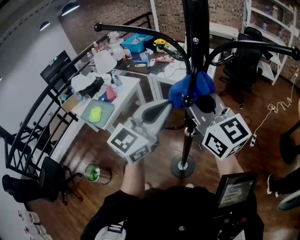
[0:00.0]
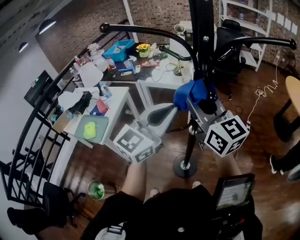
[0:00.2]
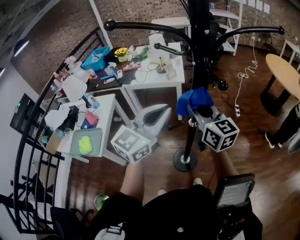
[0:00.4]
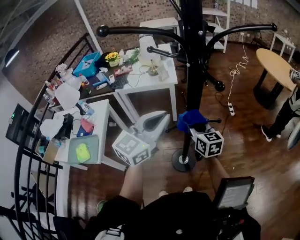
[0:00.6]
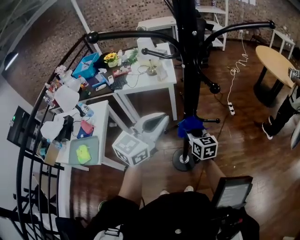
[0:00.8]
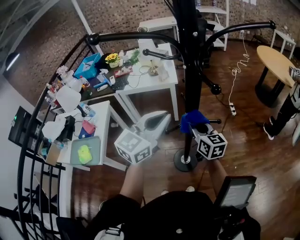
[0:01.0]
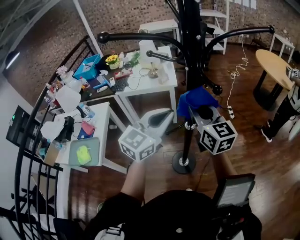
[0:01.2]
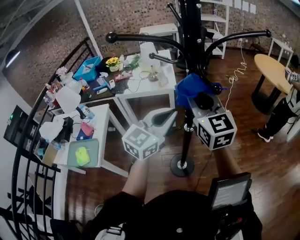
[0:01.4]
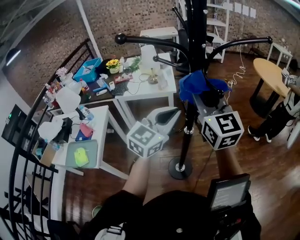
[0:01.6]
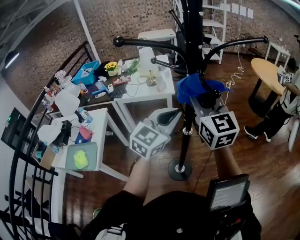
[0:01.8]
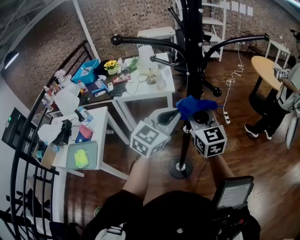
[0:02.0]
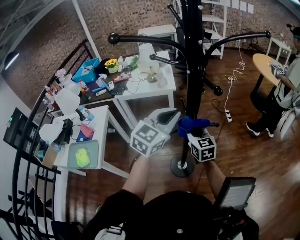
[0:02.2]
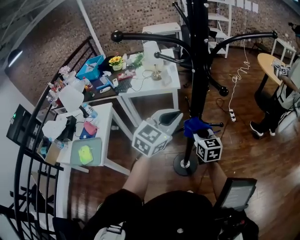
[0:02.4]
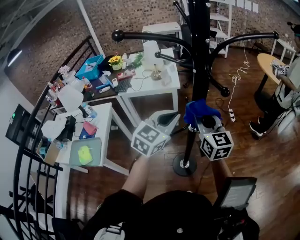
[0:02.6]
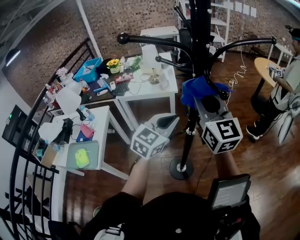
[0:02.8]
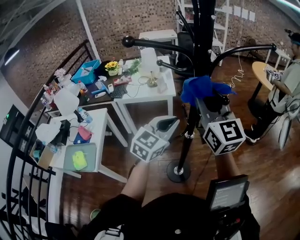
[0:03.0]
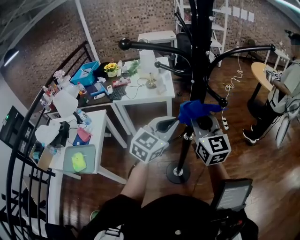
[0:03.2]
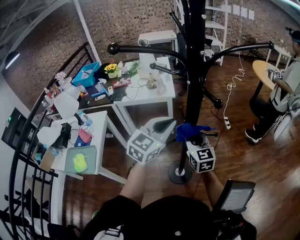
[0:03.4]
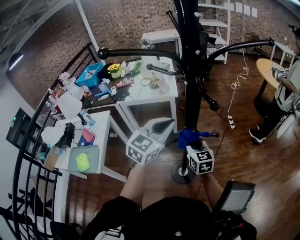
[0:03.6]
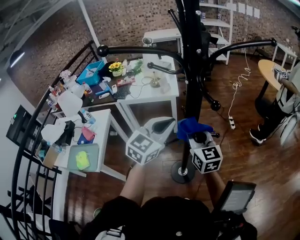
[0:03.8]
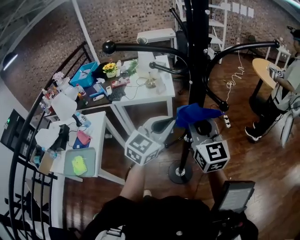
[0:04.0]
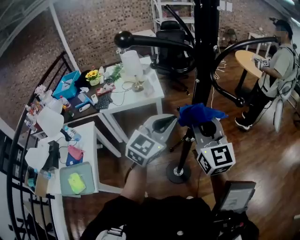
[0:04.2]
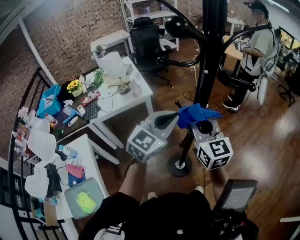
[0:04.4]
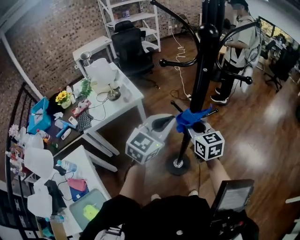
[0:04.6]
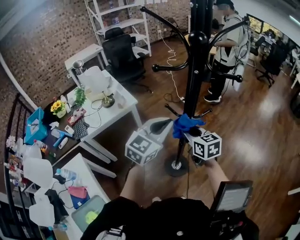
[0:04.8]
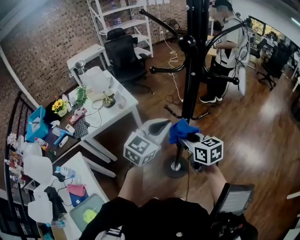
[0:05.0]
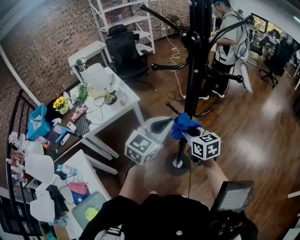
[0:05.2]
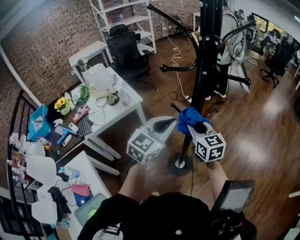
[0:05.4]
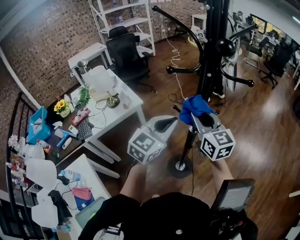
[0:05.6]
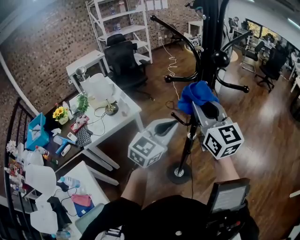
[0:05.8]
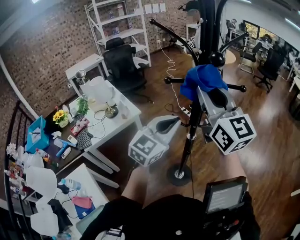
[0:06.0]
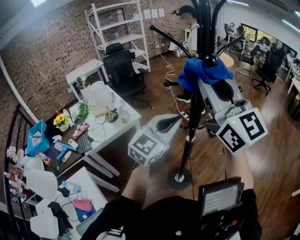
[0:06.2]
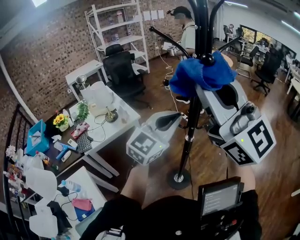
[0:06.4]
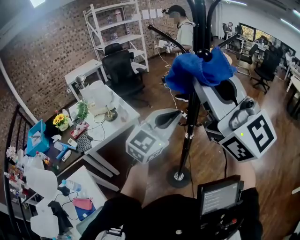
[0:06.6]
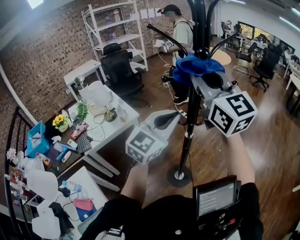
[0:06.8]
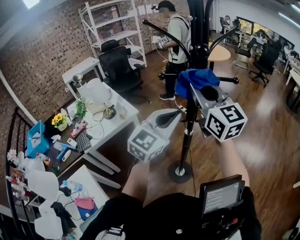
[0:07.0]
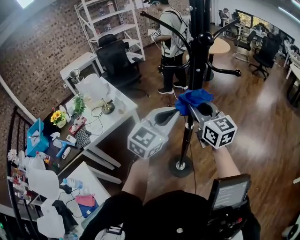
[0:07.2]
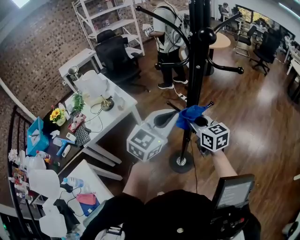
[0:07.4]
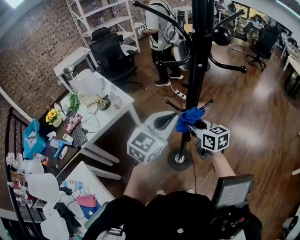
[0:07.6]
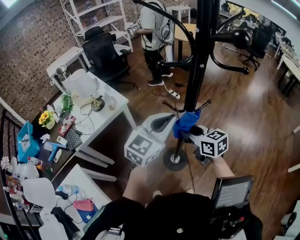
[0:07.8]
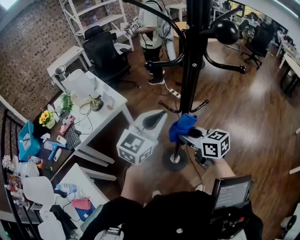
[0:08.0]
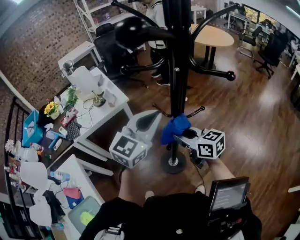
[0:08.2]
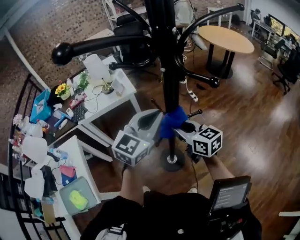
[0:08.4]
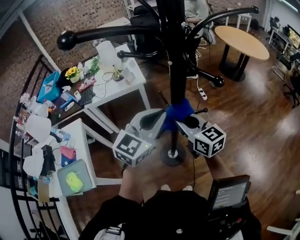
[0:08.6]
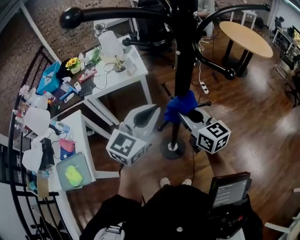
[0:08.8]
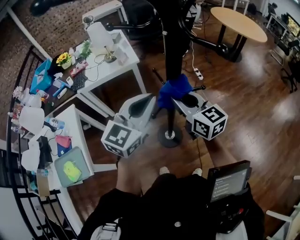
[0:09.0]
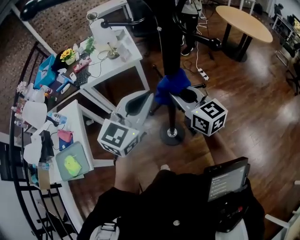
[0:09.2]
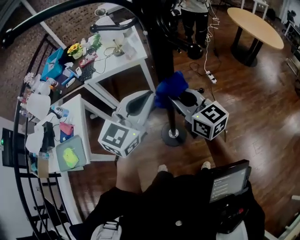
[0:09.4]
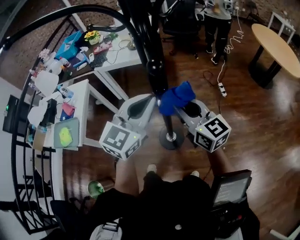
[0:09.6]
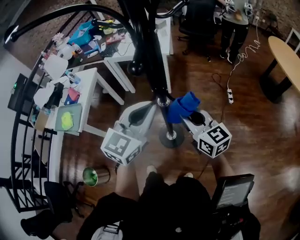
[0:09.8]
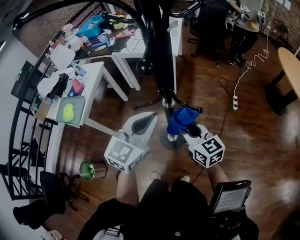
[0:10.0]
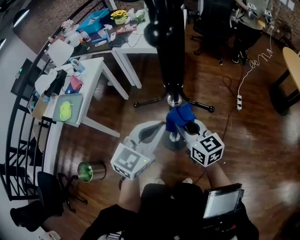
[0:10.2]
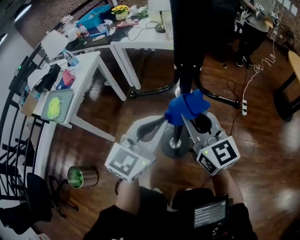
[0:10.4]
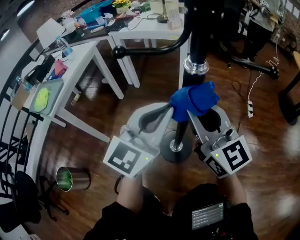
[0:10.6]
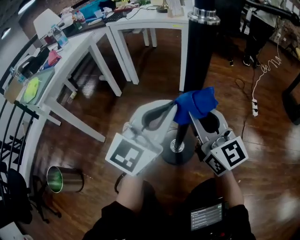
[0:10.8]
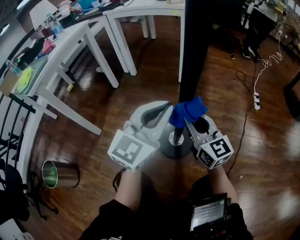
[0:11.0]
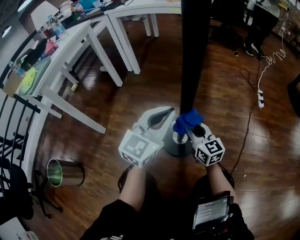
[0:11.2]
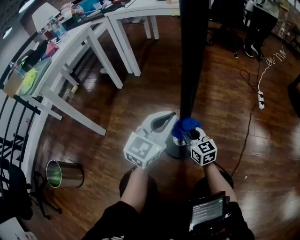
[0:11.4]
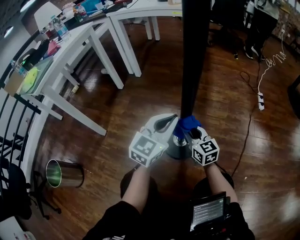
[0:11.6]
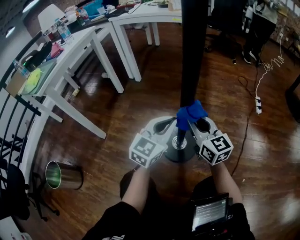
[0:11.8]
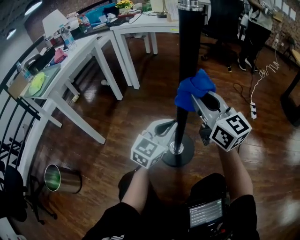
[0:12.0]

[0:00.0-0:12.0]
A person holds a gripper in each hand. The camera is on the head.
0:00.0 to 0:01.6: The left gripper changes its angle by roughly 30 degrees; the right gripper travels downward and back again, about 30 cm each way, and turns by roughly 50 degrees.
0:01.6 to 0:03.0: The right gripper reaches about 30 cm downward, then returns; the left gripper is displaced downward by approximately 5 cm.
0:03.0 to 0:04.4: The left gripper changes place by about 5 cm, and changes its angle by roughly 30 degrees. The right gripper swings up and down, approximately 30 cm each way, with 2 reversals, and changes its angle by about 30 degrees.
0:04.4 to 0:06.0: The left gripper travels upward by approximately 5 cm, while the right gripper heads upward, covering about 20 cm, and changes its angle by approximately 20 degrees.
0:06.0 to 0:07.6: The right gripper goes some 30 cm downward, and angles its fingers downward, by roughly 30 degrees.
0:07.6 to 0:09.0: The left gripper ends up about 5 cm from where it was, and swivels roughly 30 degrees. The right gripper is displaced upward by roughly 5 cm, and swivels some 30 degrees.
0:09.0 to 0:10.4: Both grippers travel together downward, some 15 cm. The right gripper rotates roughly 30 degrees, while the left gripper turns by roughly 30 degrees.
0:10.4 to 0:12.0: The left gripper travels downward by roughly 35 cm. Meanwhile the right gripper shifts roughly 25 cm downward.

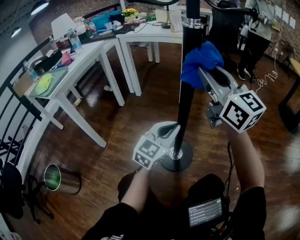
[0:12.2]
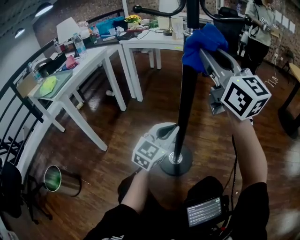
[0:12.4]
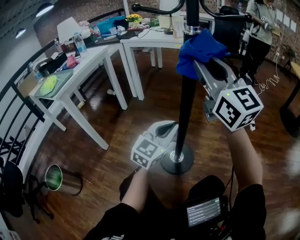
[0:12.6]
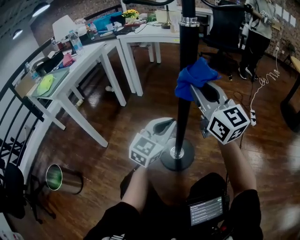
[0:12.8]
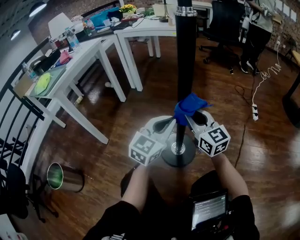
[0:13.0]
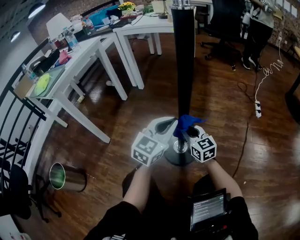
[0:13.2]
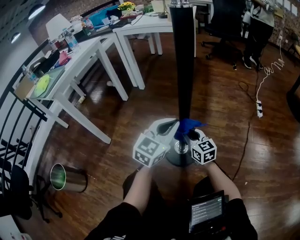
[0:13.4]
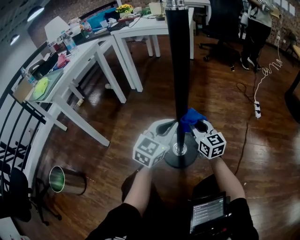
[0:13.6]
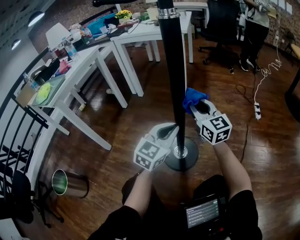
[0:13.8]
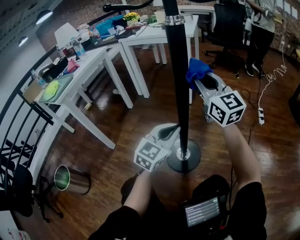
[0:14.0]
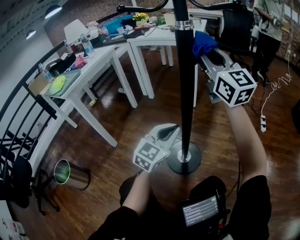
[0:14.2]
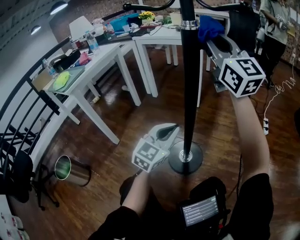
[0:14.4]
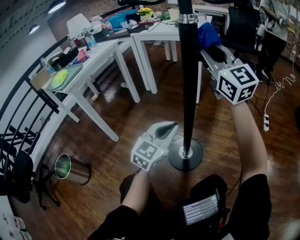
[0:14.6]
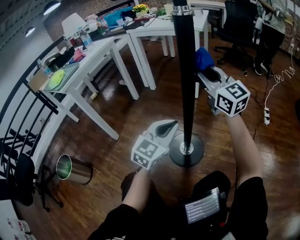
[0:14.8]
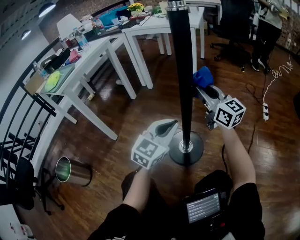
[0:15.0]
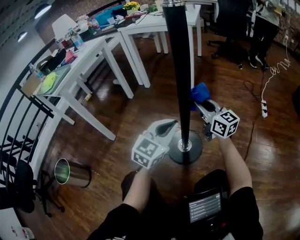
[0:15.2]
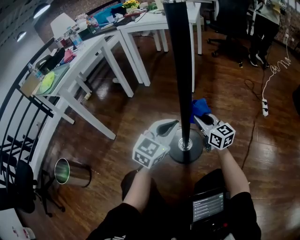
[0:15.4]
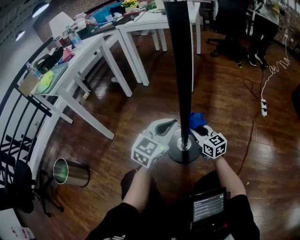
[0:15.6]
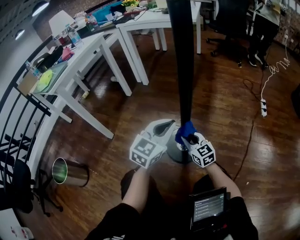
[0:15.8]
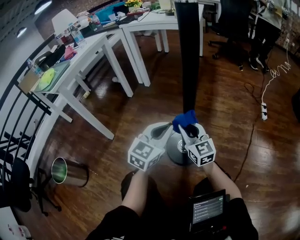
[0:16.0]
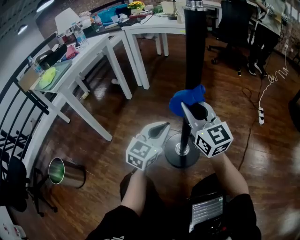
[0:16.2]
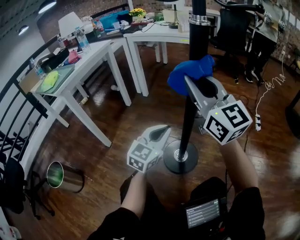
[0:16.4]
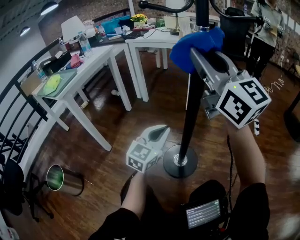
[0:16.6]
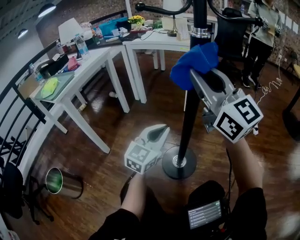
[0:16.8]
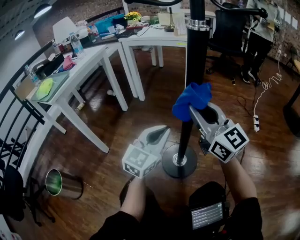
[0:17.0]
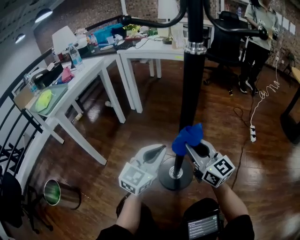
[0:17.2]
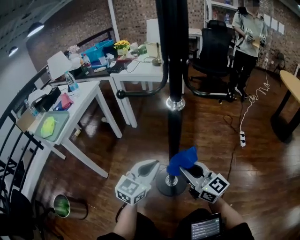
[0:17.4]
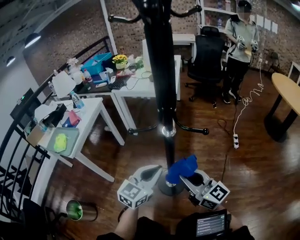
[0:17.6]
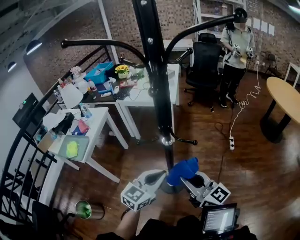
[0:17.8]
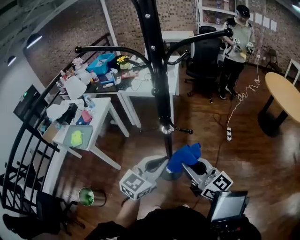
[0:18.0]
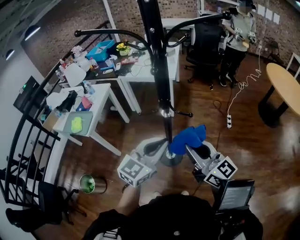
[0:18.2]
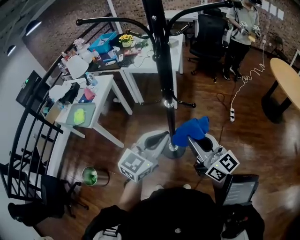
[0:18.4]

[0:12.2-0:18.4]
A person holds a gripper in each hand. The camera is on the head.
0:12.2 to 0:13.8: The right gripper swings up and down, approximately 50 cm each way, with 2 reversals.
0:13.8 to 0:15.4: The right gripper travels upward and back again, about 30 cm each way.
0:15.4 to 0:16.8: The right gripper swings up and down, about 50 cm each way, with 2 reversals, and changes its angle by roughly 30 degrees. The left gripper is displaced upward and to the left by about 10 cm.
0:16.8 to 0:18.4: The right gripper shifts some 30 cm upward and backward, and changes its angle by about 20 degrees, while the left gripper shifts some 50 cm upward.

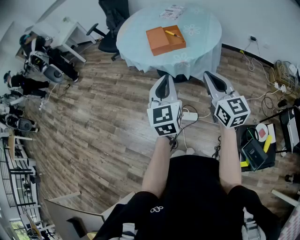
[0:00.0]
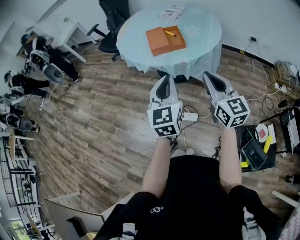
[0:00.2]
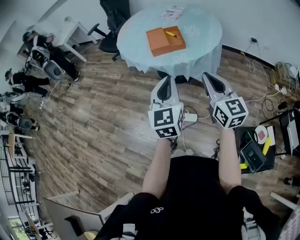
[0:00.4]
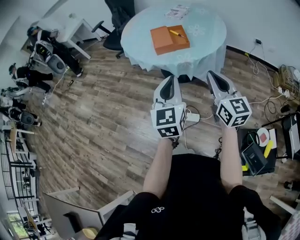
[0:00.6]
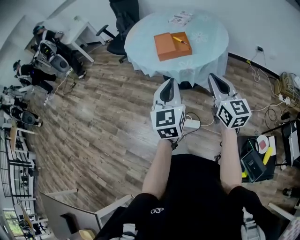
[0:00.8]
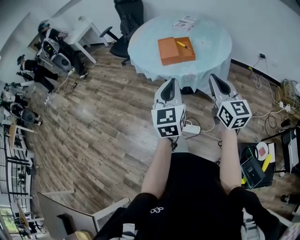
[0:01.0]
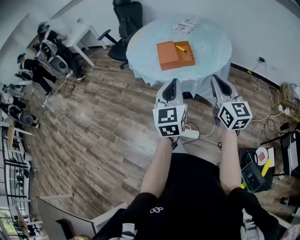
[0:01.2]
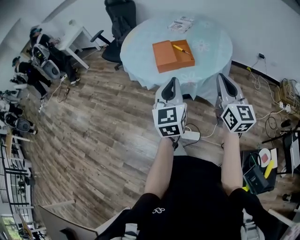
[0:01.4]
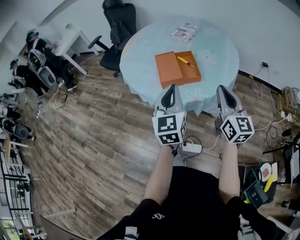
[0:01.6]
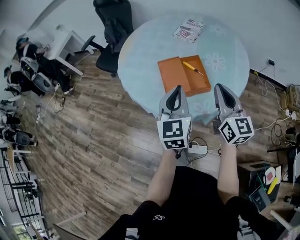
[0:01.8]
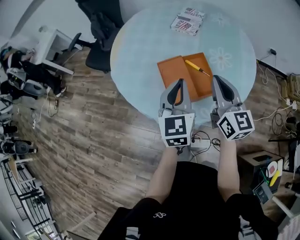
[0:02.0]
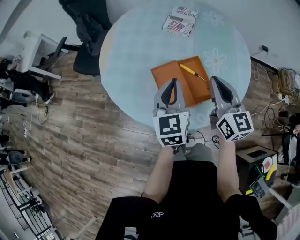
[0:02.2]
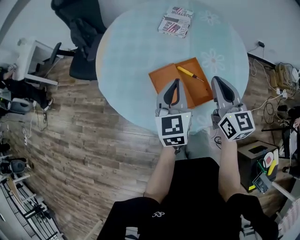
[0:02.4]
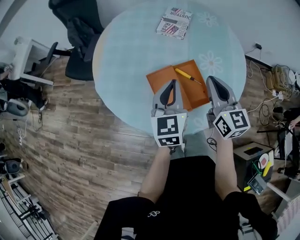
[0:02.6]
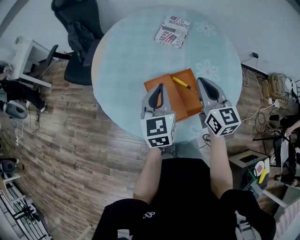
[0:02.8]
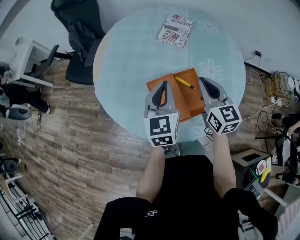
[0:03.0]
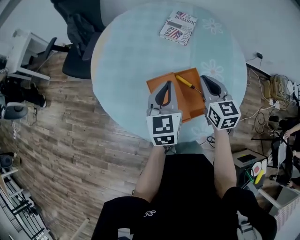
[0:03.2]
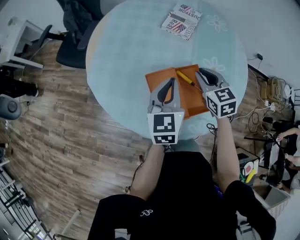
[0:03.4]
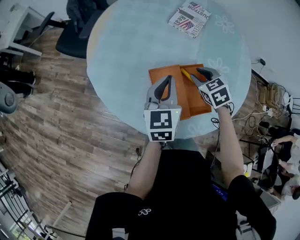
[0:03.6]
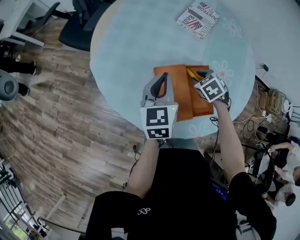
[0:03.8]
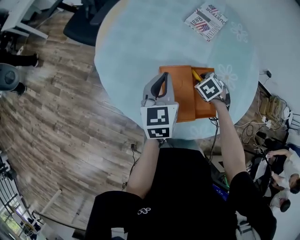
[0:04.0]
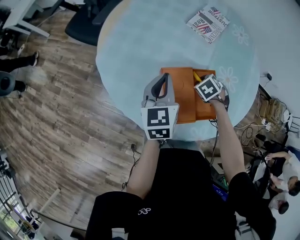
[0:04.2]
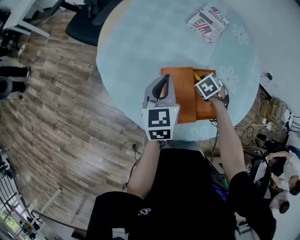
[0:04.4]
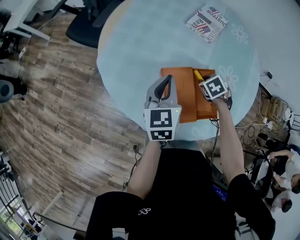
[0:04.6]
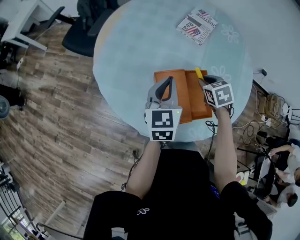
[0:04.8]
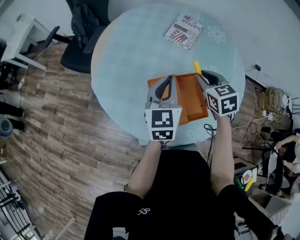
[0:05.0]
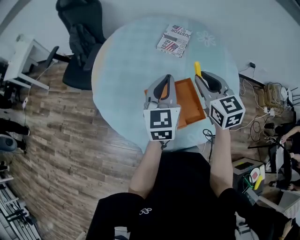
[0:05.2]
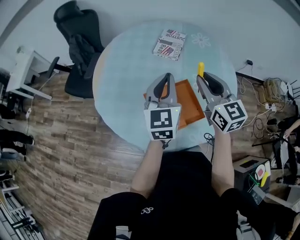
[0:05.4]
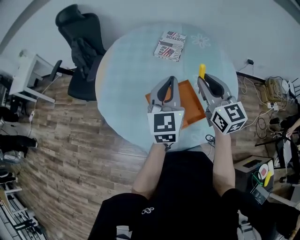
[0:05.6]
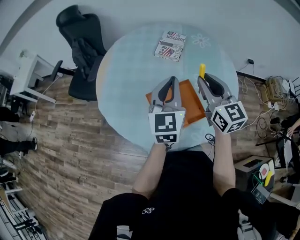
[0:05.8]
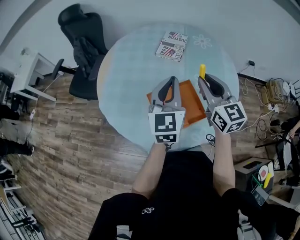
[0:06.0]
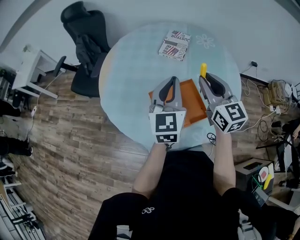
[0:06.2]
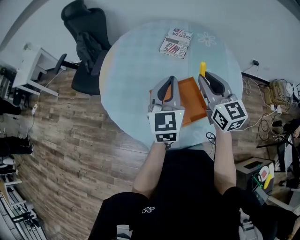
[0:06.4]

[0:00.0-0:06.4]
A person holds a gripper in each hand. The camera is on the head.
0:00.0 to 0:01.6: The grippers both shift forward by approximately 25 cm.
0:01.6 to 0:03.2: Both grippers move forward, approximately 35 cm. The right gripper swivels approximately 30 degrees.
0:03.2 to 0:04.8: The right gripper moves downward, approximately 10 cm, and points its fingers approximately 40 degrees further downward.
0:04.8 to 0:06.4: The right gripper shifts about 25 cm upward, and tips its fingers upward by approximately 60 degrees. Meanwhile the left gripper is displaced upward and to the right by roughly 15 cm, and swivels about 20 degrees.
